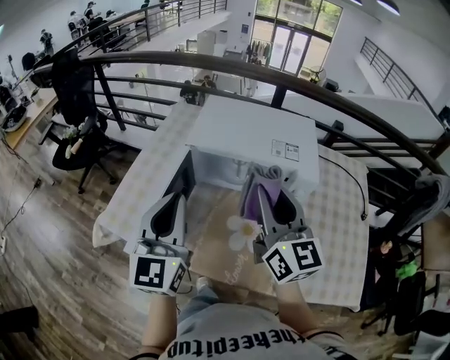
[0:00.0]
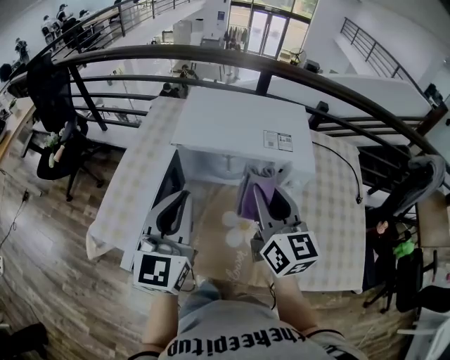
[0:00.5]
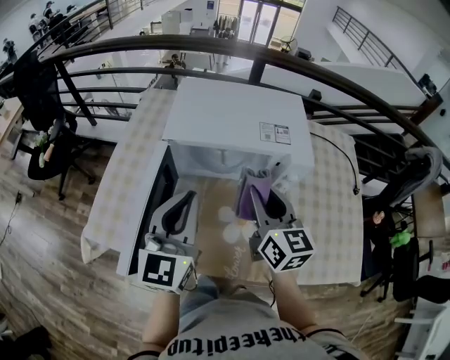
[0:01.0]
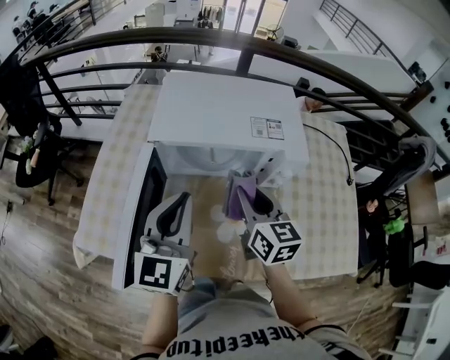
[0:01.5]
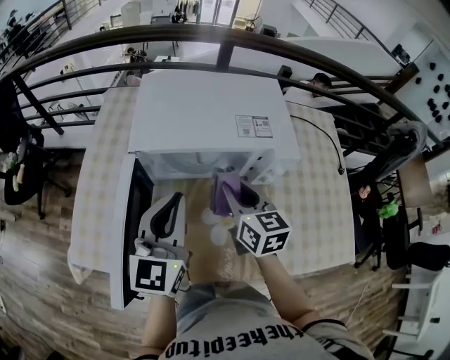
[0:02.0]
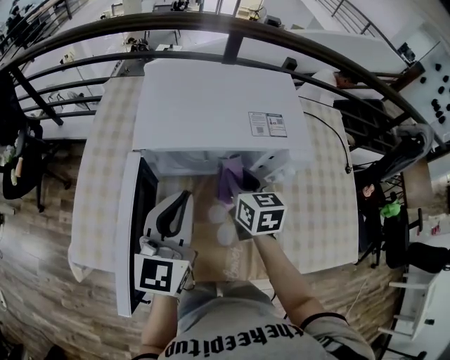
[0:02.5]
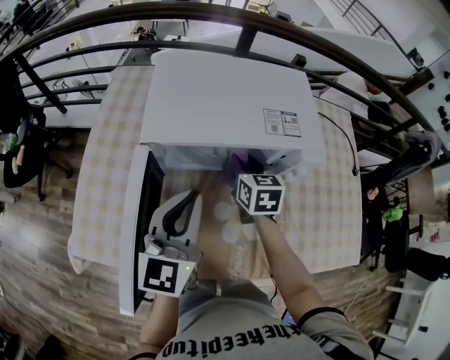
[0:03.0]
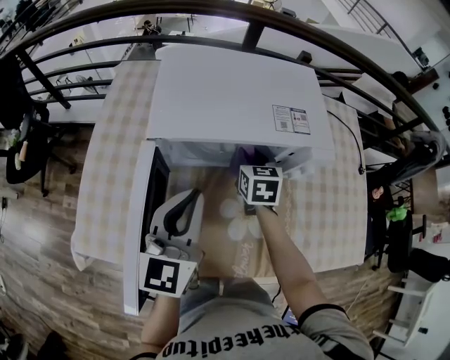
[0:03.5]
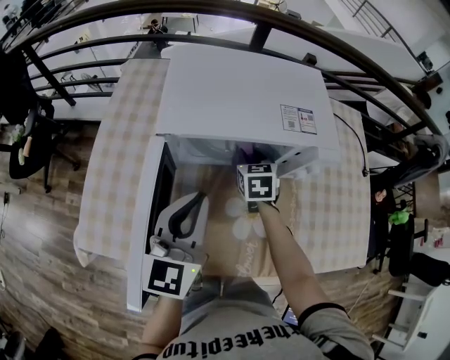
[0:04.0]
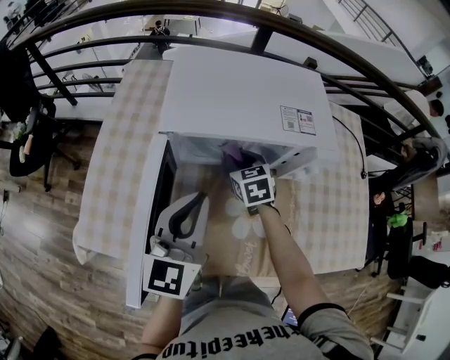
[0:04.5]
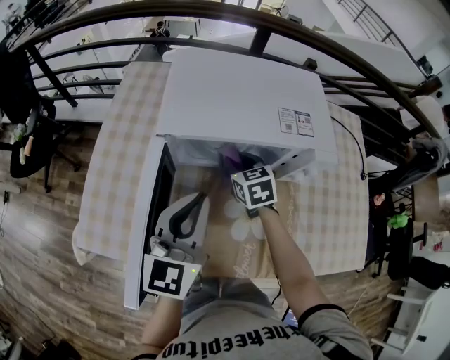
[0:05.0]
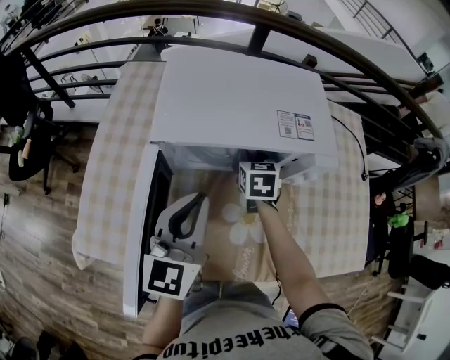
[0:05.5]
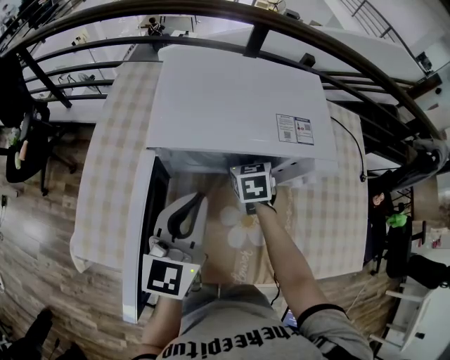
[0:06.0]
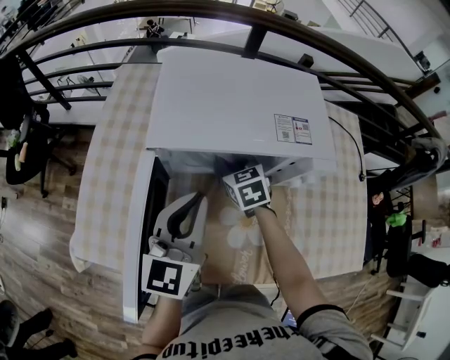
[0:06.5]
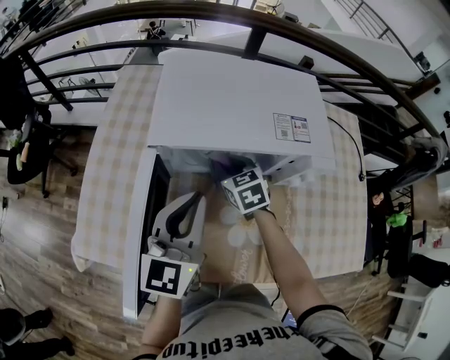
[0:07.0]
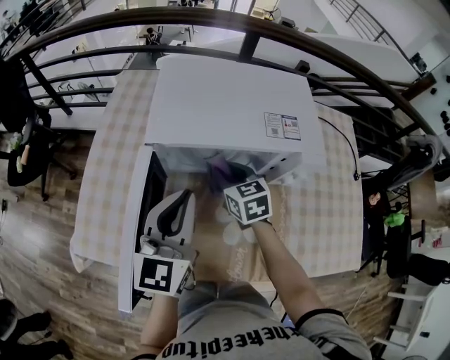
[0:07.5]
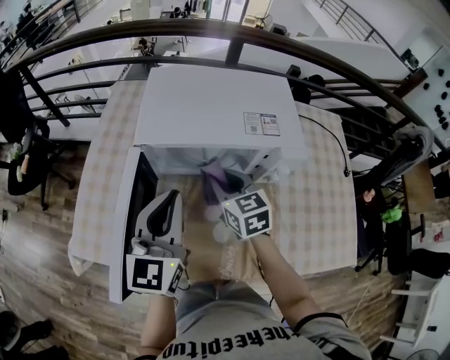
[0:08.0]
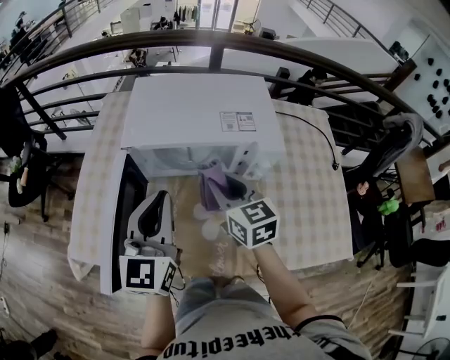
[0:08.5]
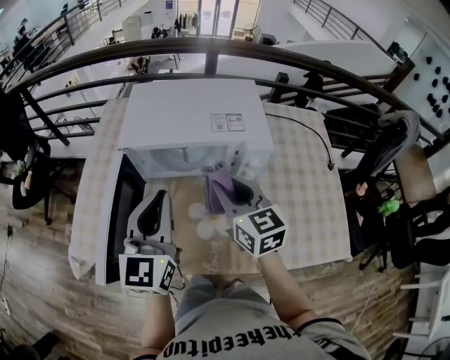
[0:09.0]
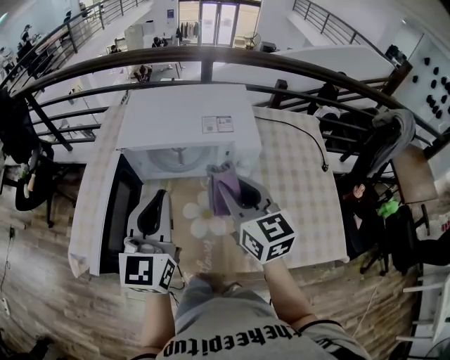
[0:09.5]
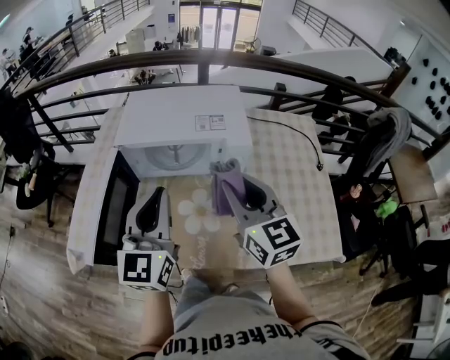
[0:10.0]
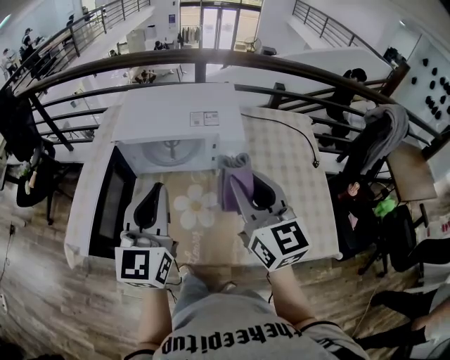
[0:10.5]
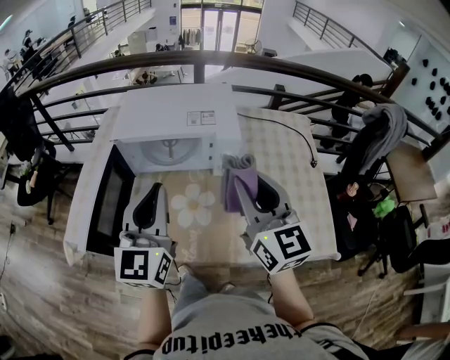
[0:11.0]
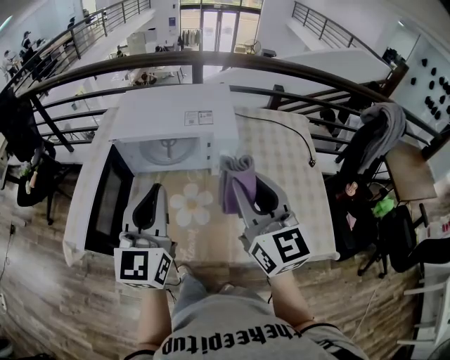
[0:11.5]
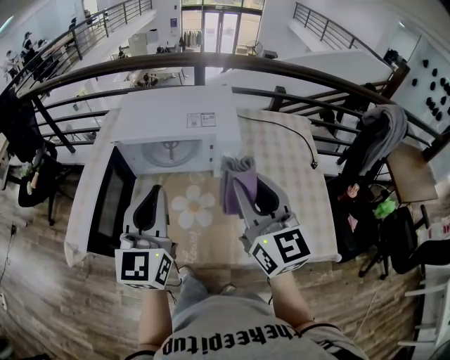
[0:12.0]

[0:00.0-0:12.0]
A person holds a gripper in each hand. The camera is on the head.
0:00.0 to 0:02.0: The right gripper shifts some 20 cm downward and forward, and turns by some 30 degrees. Meanwhile the left gripper heads forward, downward and to the right, covering some 15 cm, and changes its angle by some 20 degrees.
0:02.0 to 0:04.0: The right gripper heads downward and forward, covering roughly 15 cm, and turns by approximately 30 degrees; the left gripper shifts by approximately 5 cm.
0:04.0 to 0:06.0: There are only small adjustments of the grippers.
0:06.0 to 0:08.0: The right gripper travels backward and upward by roughly 15 cm, and changes its angle by some 20 degrees. The left gripper shifts roughly 5 cm upward.
0:08.0 to 0:10.0: The left gripper shifts roughly 15 cm backward, to the right and upward. Meanwhile the right gripper is displaced upward, backward and to the right by roughly 30 cm, and rotates about 20 degrees.
0:10.0 to 0:12.0: The right gripper travels backward by some 5 cm.

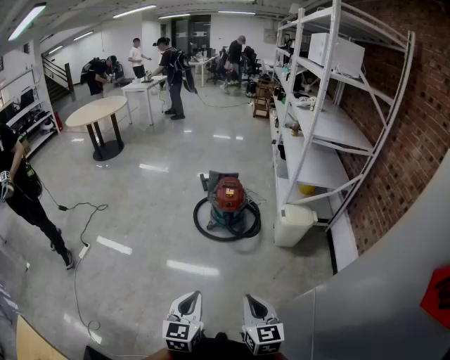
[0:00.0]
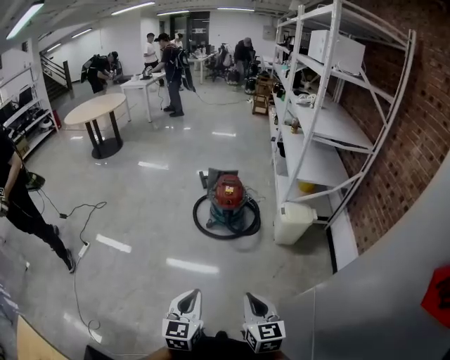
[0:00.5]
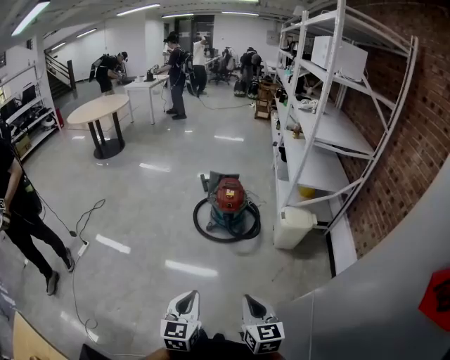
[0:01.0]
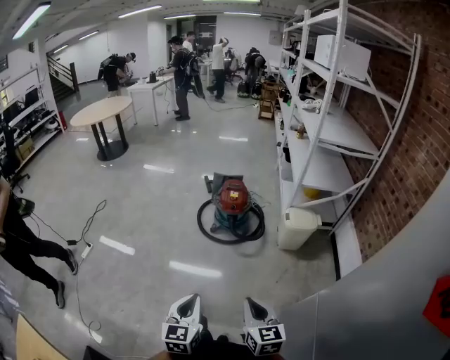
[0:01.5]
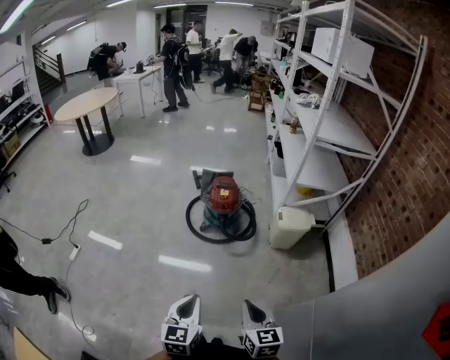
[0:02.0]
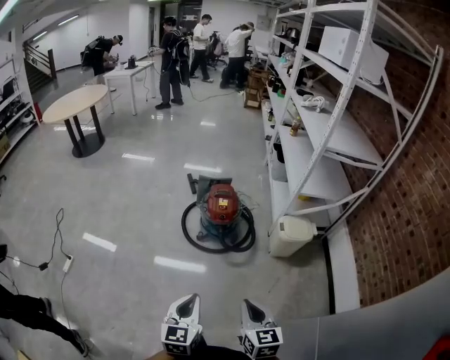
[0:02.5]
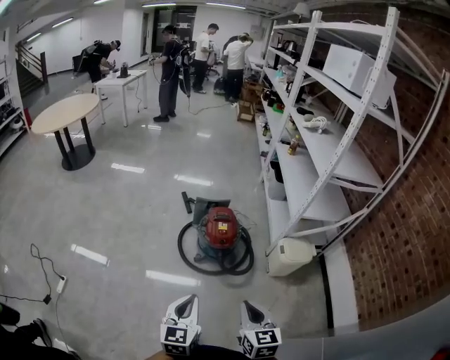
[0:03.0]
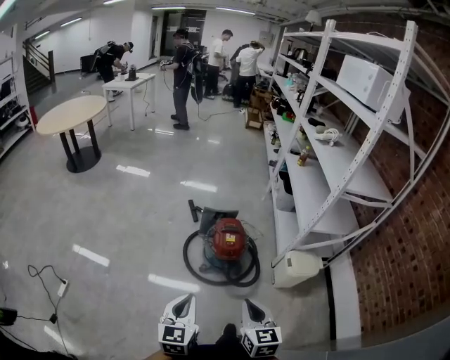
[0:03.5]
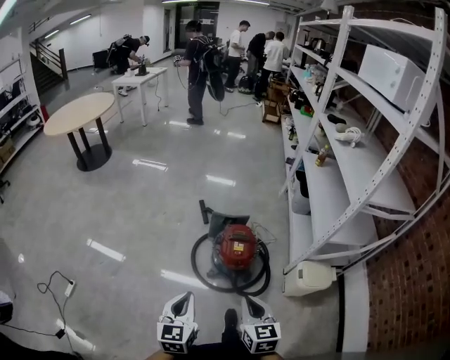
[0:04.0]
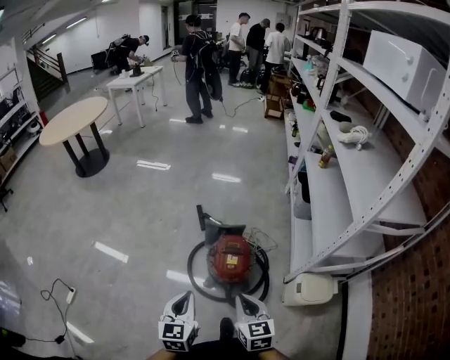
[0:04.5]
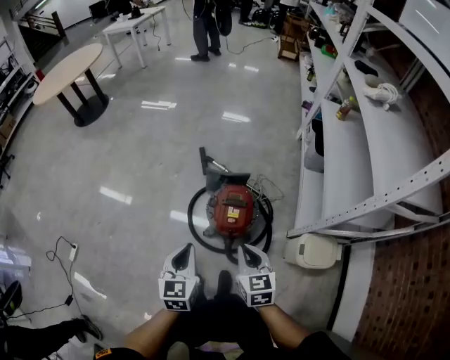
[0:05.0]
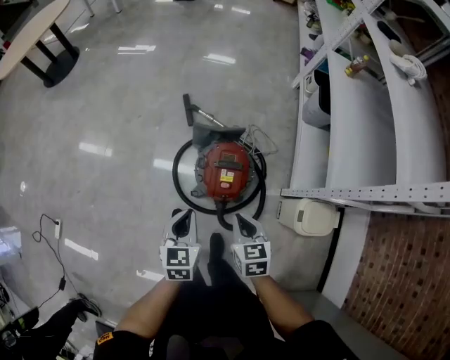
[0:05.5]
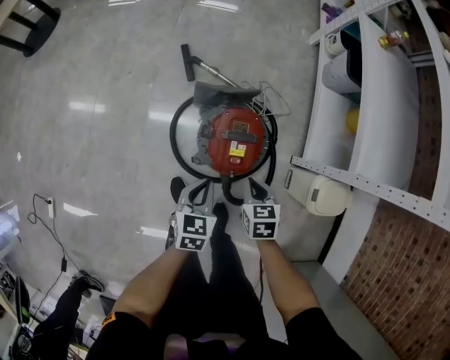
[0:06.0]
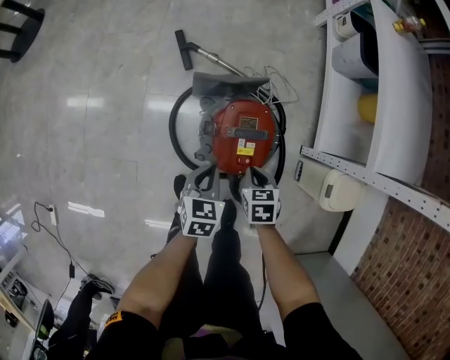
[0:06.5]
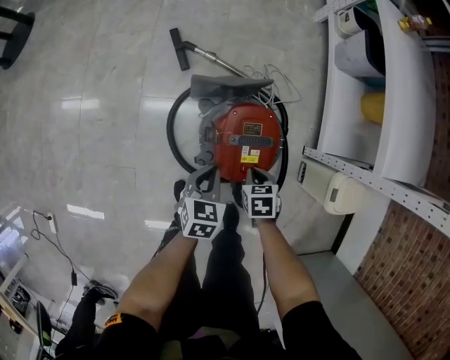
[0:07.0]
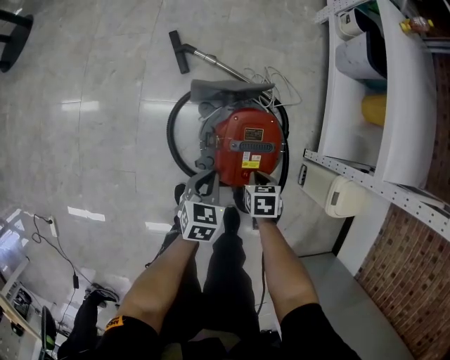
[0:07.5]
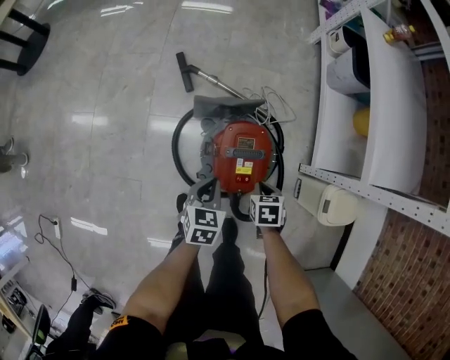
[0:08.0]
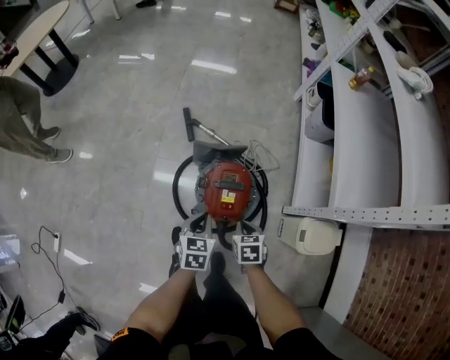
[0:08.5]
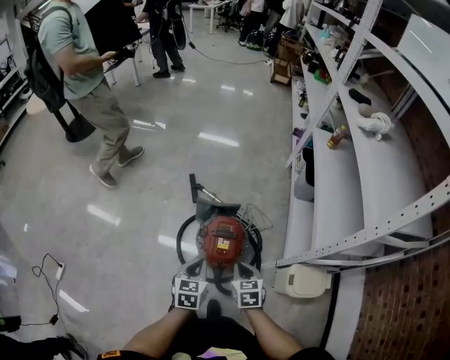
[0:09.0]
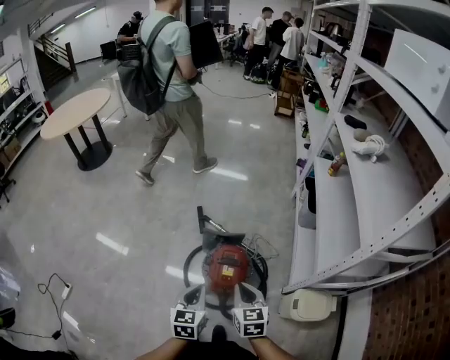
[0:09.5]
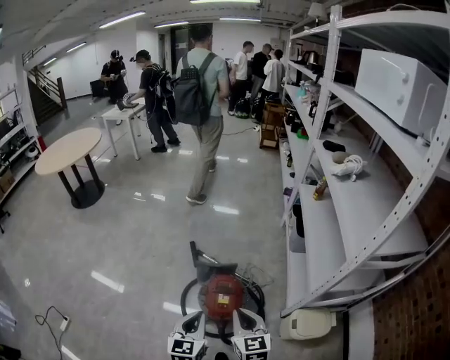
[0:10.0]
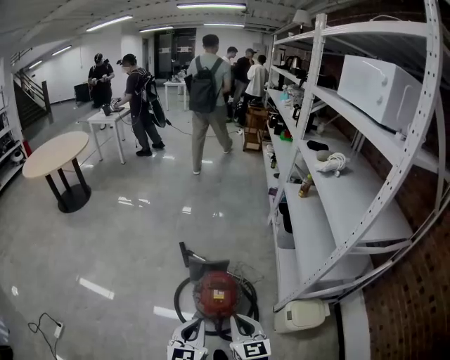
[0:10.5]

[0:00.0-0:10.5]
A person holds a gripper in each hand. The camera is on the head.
0:00.0 to 0:02.0: The two grippers go about 5 cm forward.
0:02.0 to 0:04.0: The pair of grippers is taken forward, approximately 40 cm.
0:04.0 to 0:06.5: The grippers both shift downward and forward by some 50 cm. The left gripper changes its angle by about 30 degrees. Meanwhile the right gripper angles its fingers downward, by approximately 40 degrees.
0:06.5 to 0:08.5: The grippers both shift upward by some 10 cm.
0:08.5 to 0:10.5: The right gripper moves upward, roughly 35 cm, and tips its fingers upward by roughly 40 degrees. The left gripper is displaced upward and backward by roughly 30 cm, and changes its angle by approximately 30 degrees.

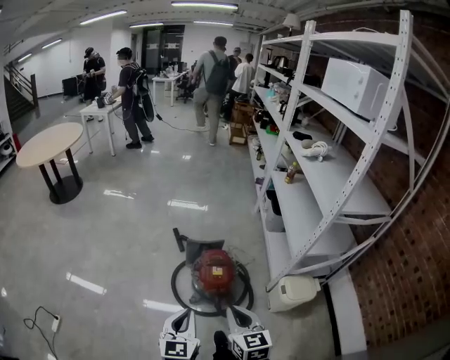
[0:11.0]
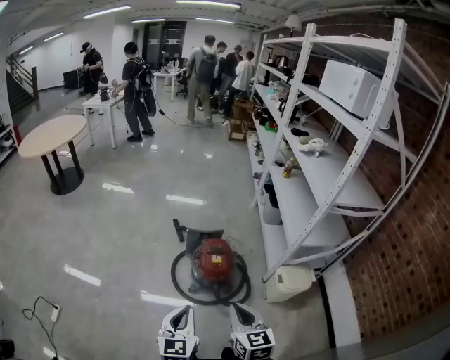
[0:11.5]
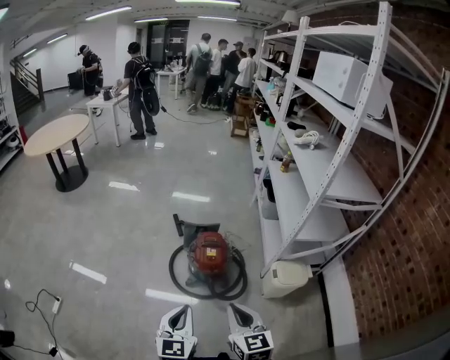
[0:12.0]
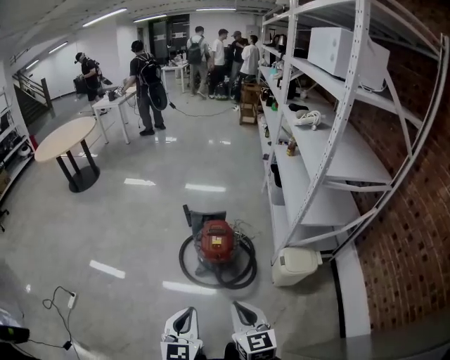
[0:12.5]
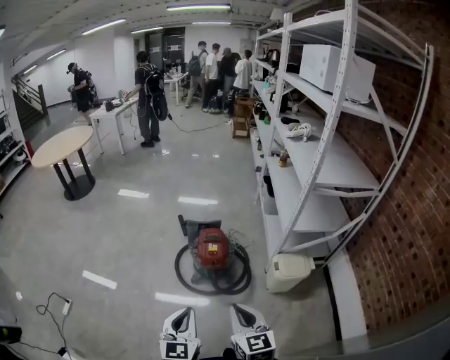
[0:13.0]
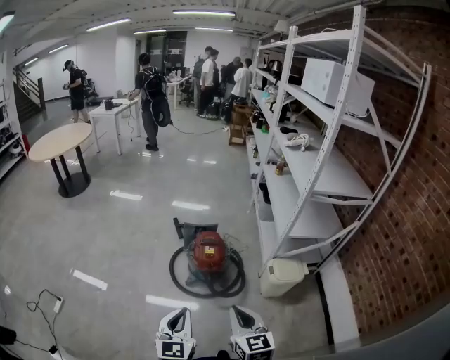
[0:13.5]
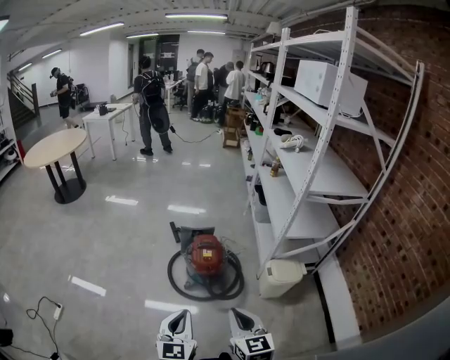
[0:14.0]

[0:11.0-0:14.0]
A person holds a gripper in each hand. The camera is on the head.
0:11.0 to 0:12.5: The two grippers go some 15 cm backward and to the right.
0:12.5 to 0:14.0: The right gripper changes place by approximately 5 cm.

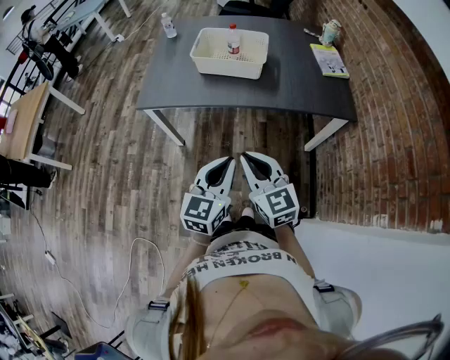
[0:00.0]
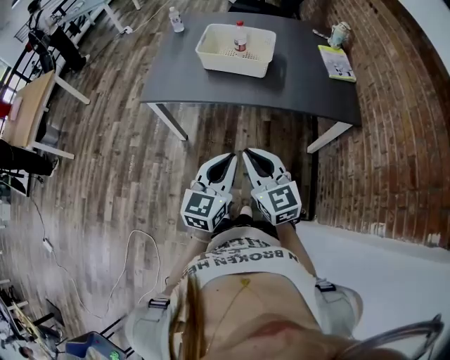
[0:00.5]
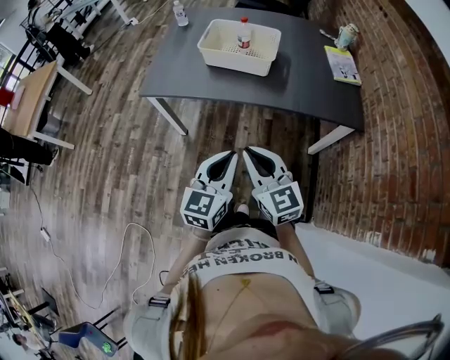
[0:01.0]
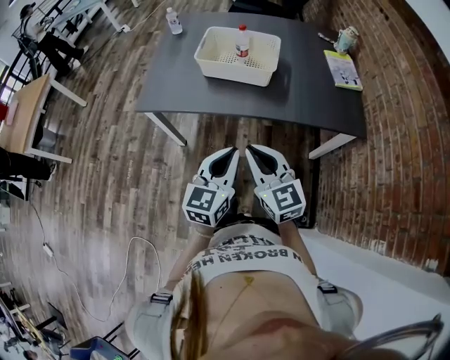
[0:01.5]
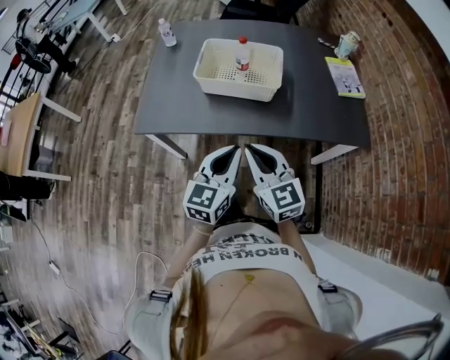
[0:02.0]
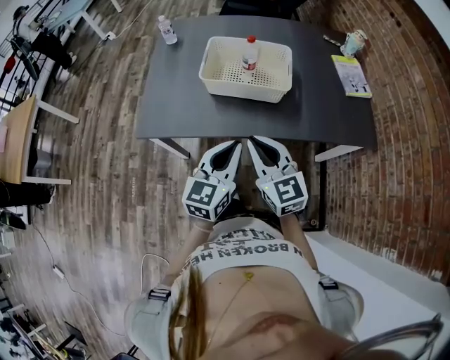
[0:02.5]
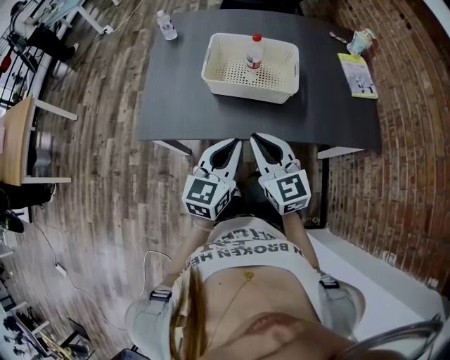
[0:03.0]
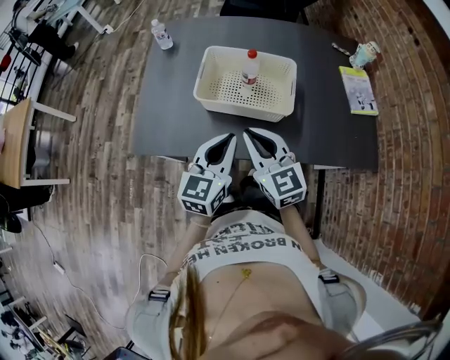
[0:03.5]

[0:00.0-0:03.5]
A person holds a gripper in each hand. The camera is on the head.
0:00.0 to 0:02.0: The grippers both shift forward by about 20 cm.
0:02.0 to 0:03.5: The two grippers go about 20 cm forward.
